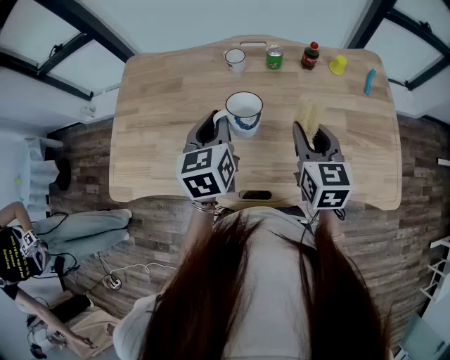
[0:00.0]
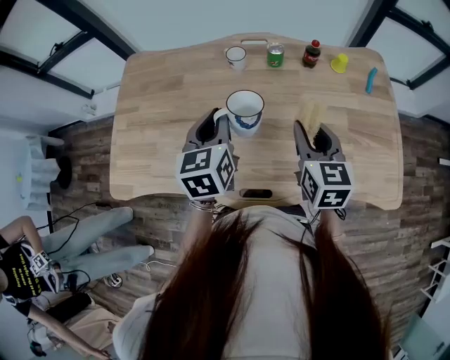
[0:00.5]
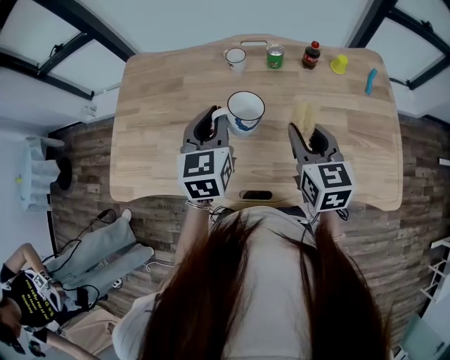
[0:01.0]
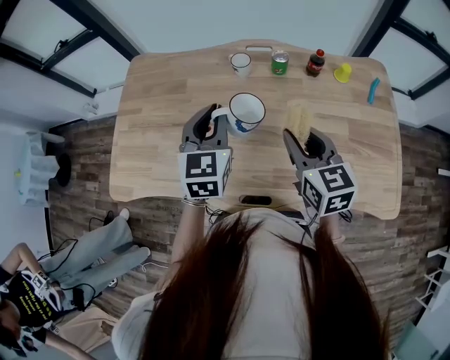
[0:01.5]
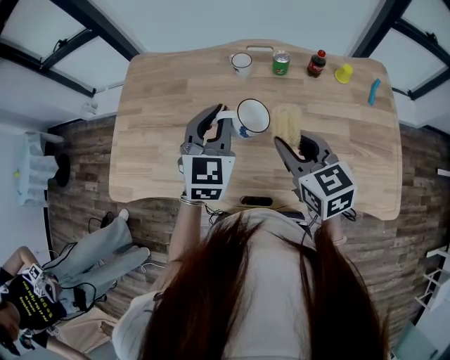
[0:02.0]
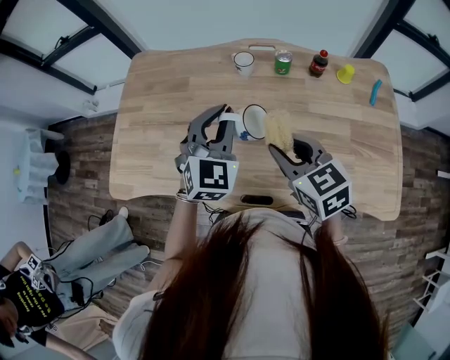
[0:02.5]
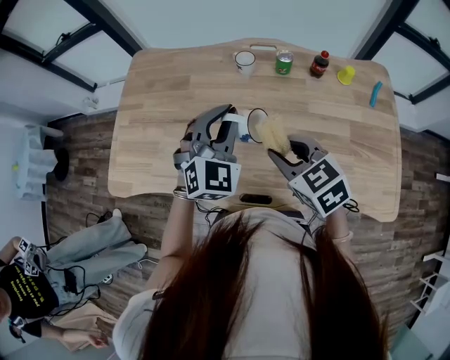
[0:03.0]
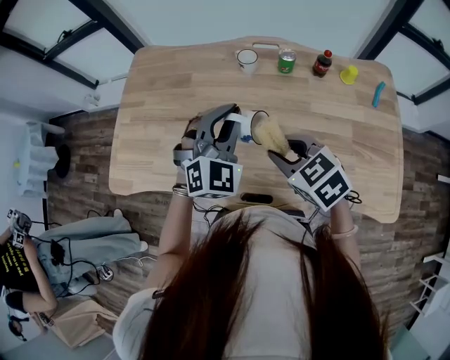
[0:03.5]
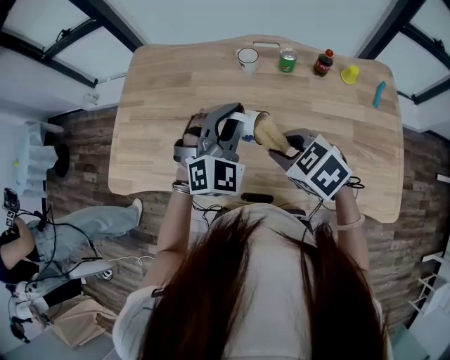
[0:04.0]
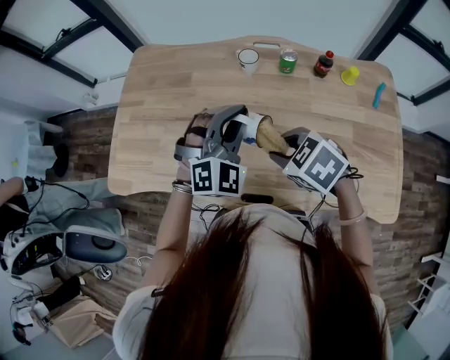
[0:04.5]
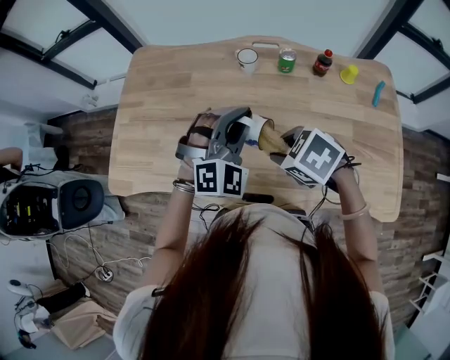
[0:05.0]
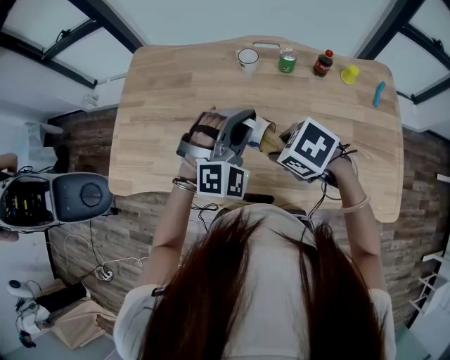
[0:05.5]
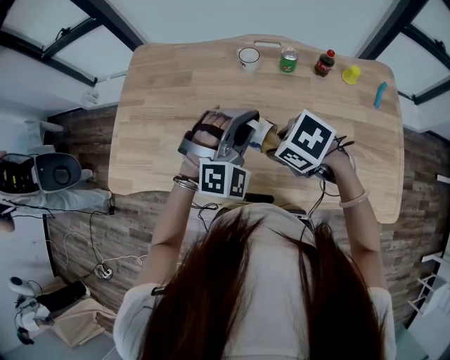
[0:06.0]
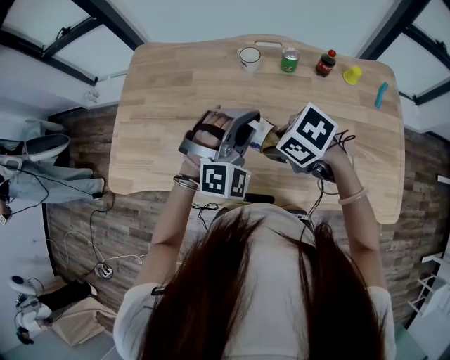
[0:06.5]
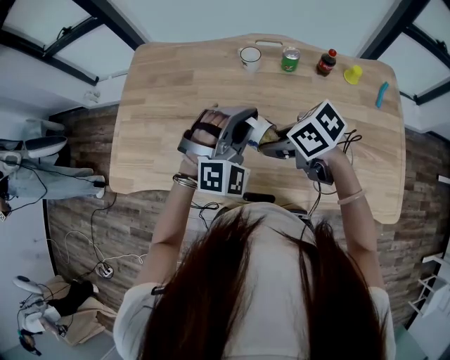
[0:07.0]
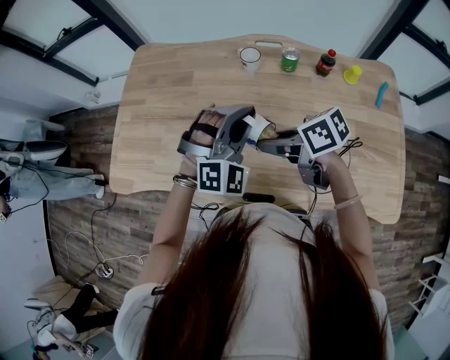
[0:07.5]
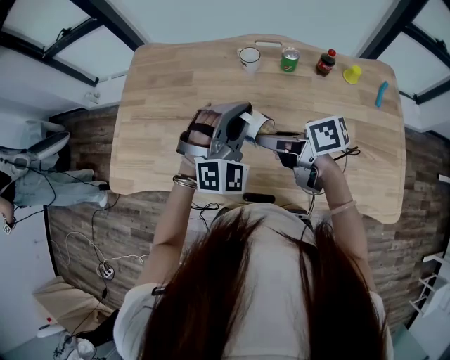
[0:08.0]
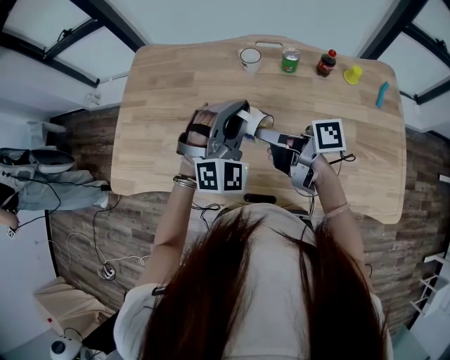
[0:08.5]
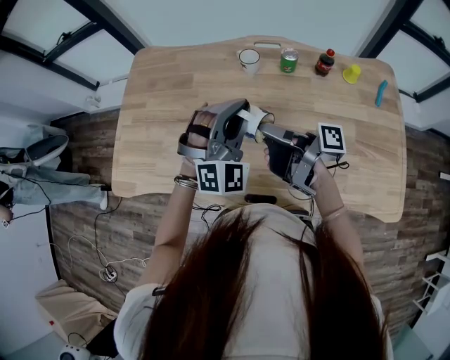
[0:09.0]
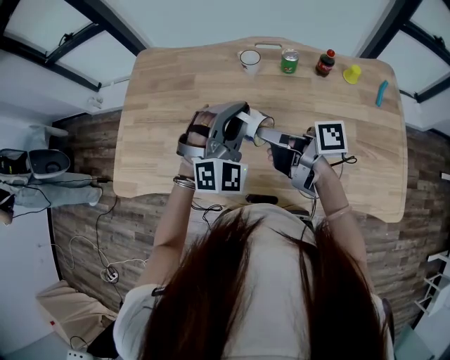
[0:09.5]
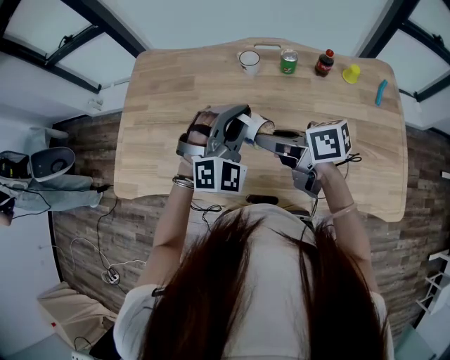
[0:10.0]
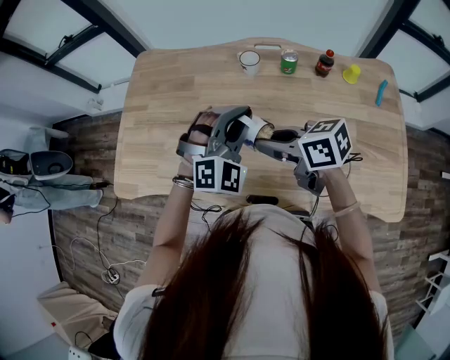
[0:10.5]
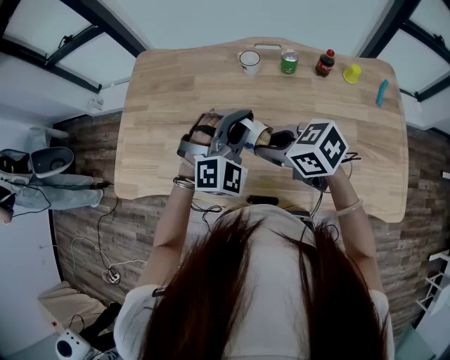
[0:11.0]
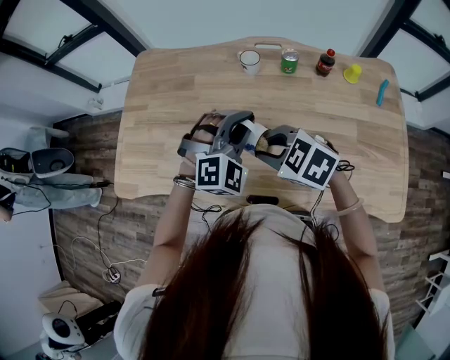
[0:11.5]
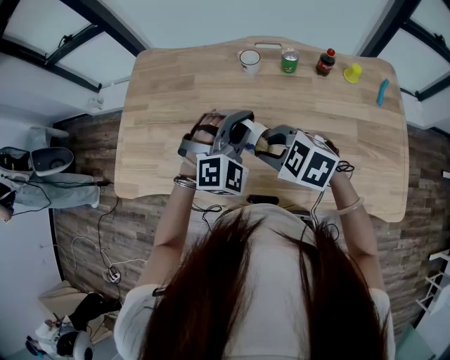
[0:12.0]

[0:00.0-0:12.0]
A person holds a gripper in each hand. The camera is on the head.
0:00.0 to 0:02.0: The right gripper is displaced to the left by approximately 5 cm, and changes its angle by approximately 20 degrees, while the left gripper swivels approximately 30 degrees.
0:02.0 to 0:04.0: The left gripper rotates approximately 30 degrees. The right gripper changes place by roughly 5 cm, and swivels about 40 degrees.
0:04.0 to 0:06.0: The right gripper changes its angle by approximately 20 degrees.
0:06.0 to 0:08.0: The right gripper tilts its fingers about 50 degrees upward.
0:10.0 to 0:12.0: The right gripper rotates around the line of its fingers by about 60 degrees, counterclockwise from behind.

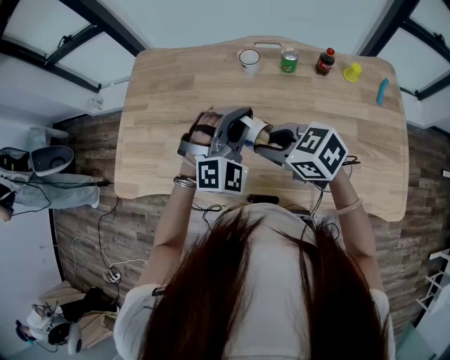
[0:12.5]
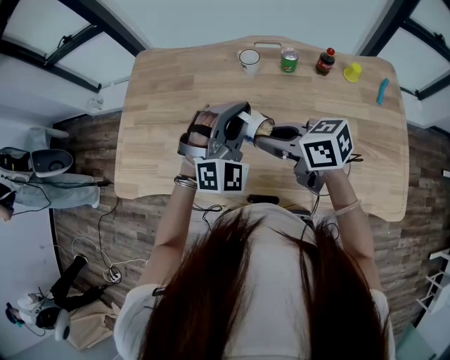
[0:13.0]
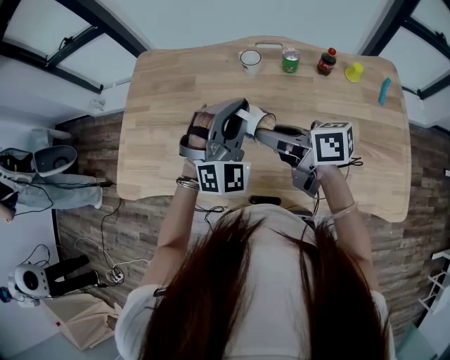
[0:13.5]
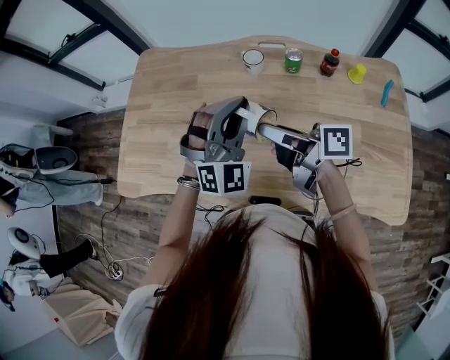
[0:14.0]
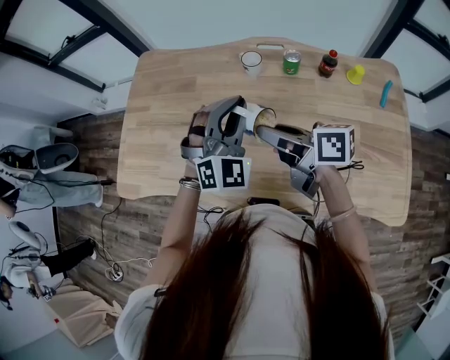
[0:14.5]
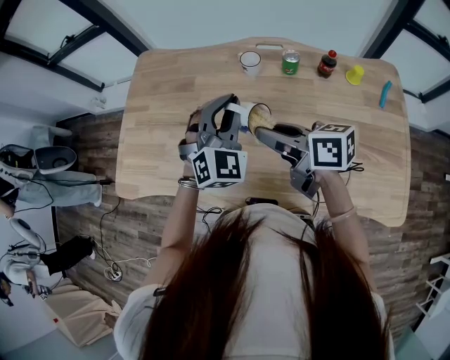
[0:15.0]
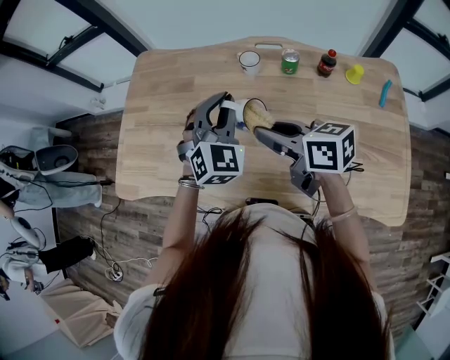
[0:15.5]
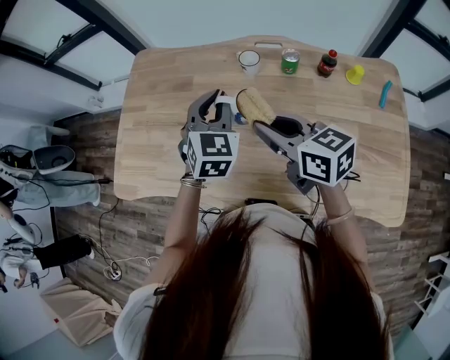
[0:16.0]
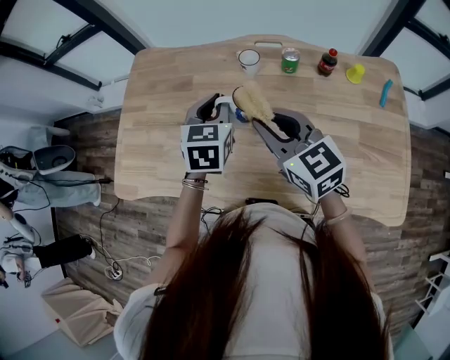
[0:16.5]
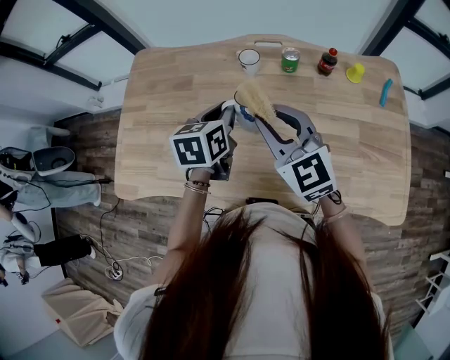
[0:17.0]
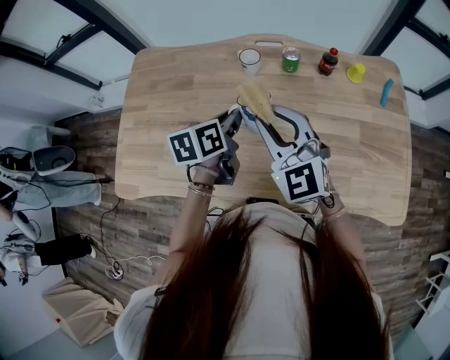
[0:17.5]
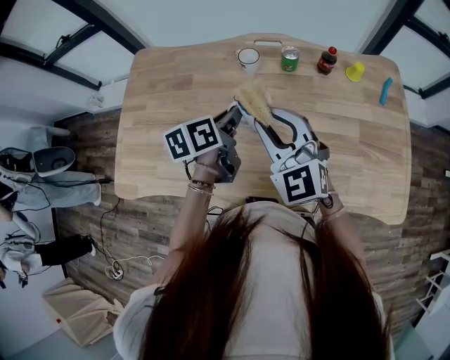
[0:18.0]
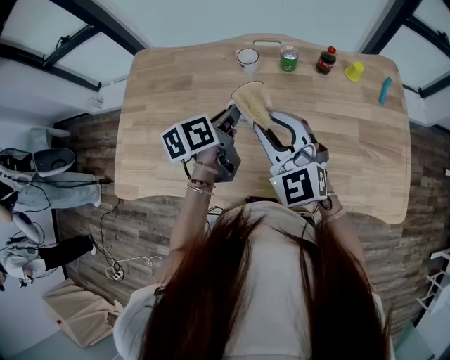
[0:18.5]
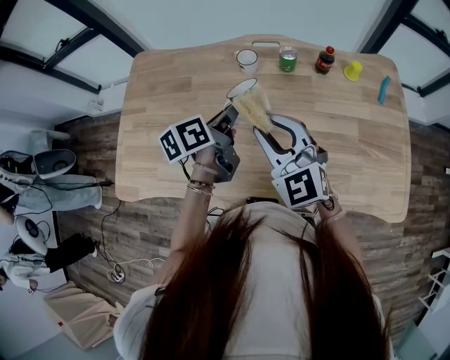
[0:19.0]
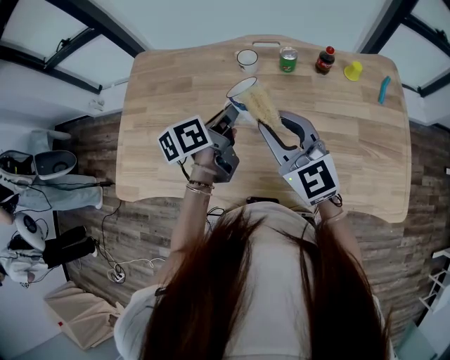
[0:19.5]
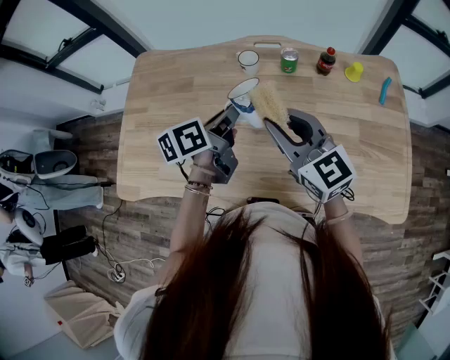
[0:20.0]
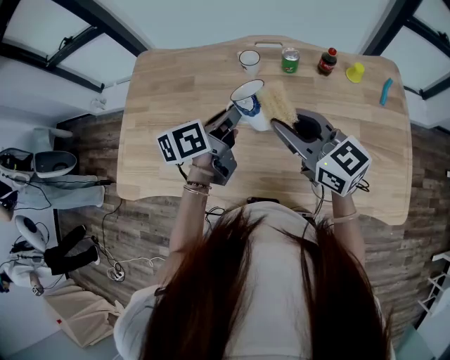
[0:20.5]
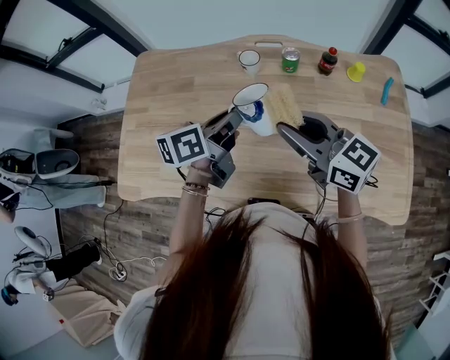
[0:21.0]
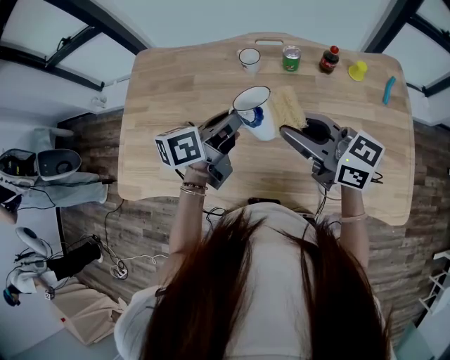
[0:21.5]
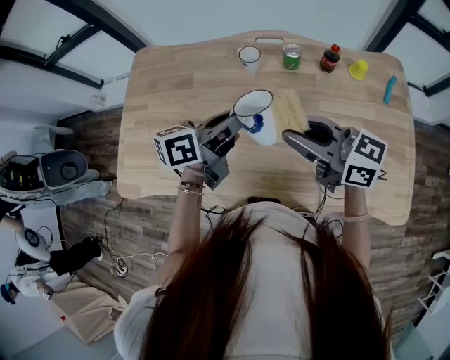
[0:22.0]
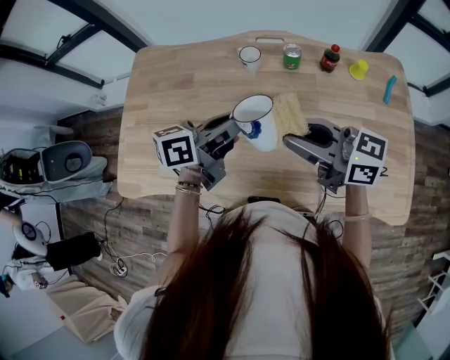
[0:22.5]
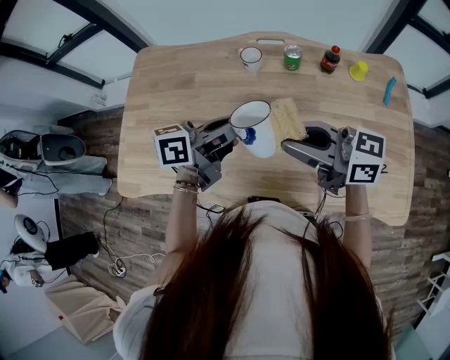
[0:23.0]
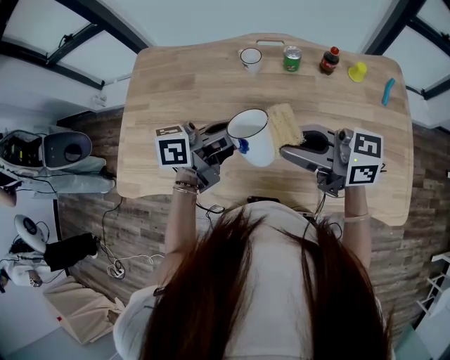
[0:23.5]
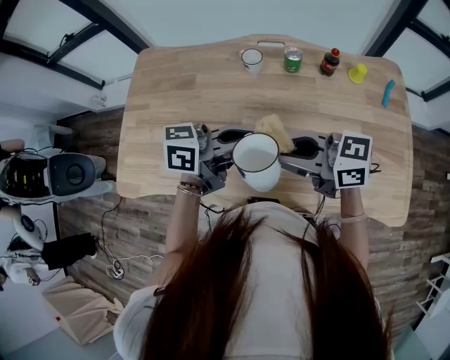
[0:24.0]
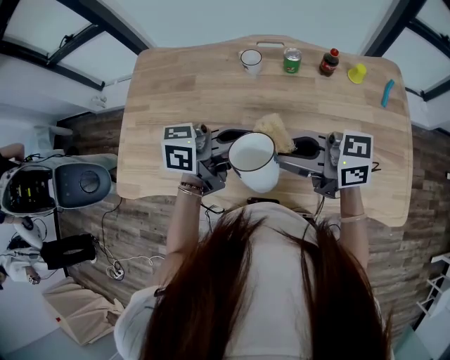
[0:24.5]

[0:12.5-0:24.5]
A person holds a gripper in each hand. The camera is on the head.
0:12.5 to 0:14.5: The right gripper shifts by approximately 5 cm, and rotates around the line of its fingers by roughly 40 degrees, clockwise from behind.
0:14.5 to 0:16.5: The left gripper goes approximately 5 cm forward, and rolls counterclockwise, seen from behind, by roughly 50 degrees. The right gripper rotates around the line of its fingers by some 50 degrees, counterclockwise from behind.
0:16.5 to 0:18.5: The right gripper rotates about 30 degrees. Meanwhile the left gripper twists about 50 degrees counterclockwise, seen from behind.
0:18.5 to 0:20.5: The right gripper rotates roughly 40 degrees.
0:20.5 to 0:22.5: The left gripper rotates about 20 degrees; the right gripper changes its angle by approximately 30 degrees.
0:22.5 to 0:24.5: The left gripper changes place by about 10 cm, and changes its angle by approximately 20 degrees. Meanwhile the right gripper ends up some 5 cm from where it was.

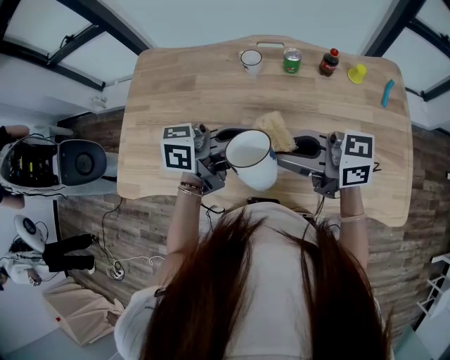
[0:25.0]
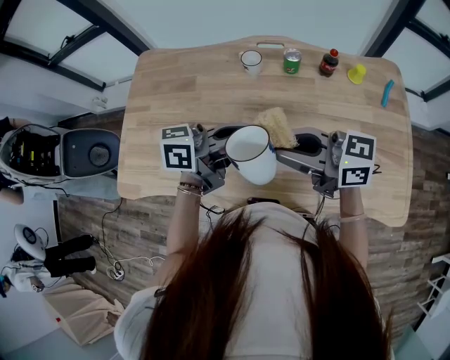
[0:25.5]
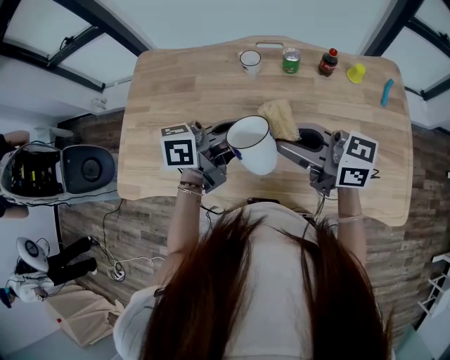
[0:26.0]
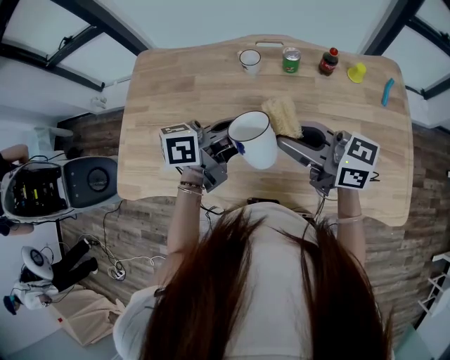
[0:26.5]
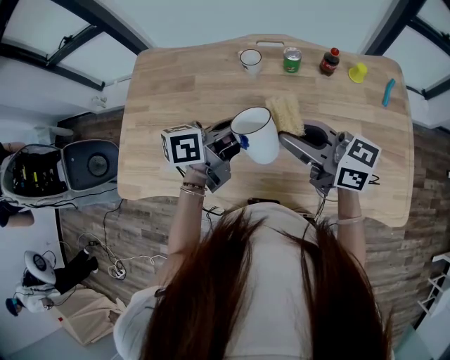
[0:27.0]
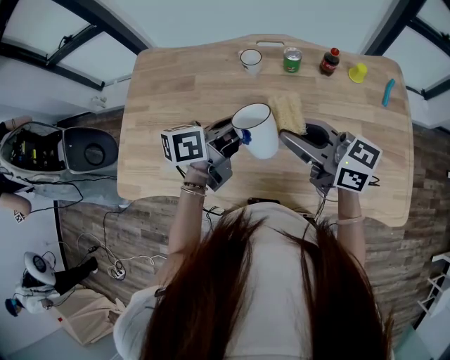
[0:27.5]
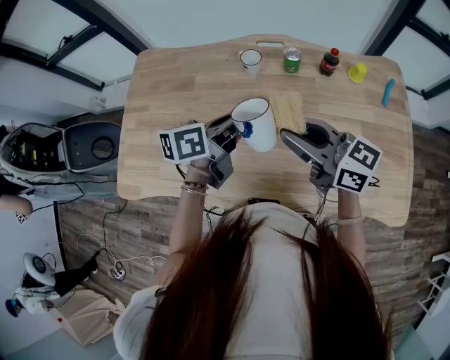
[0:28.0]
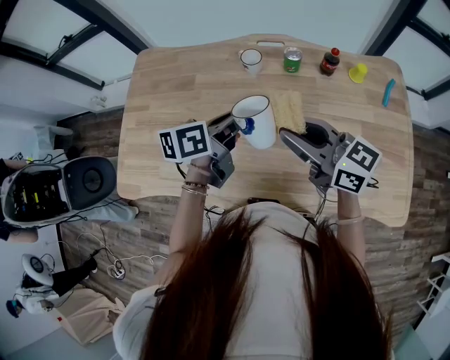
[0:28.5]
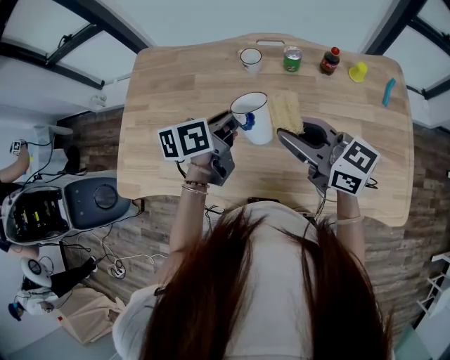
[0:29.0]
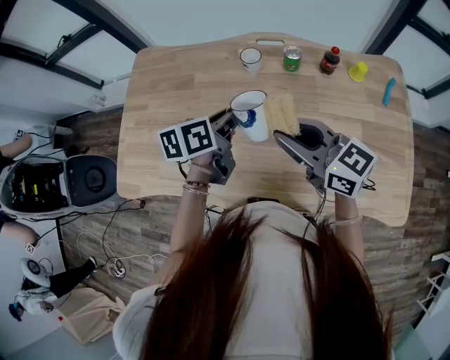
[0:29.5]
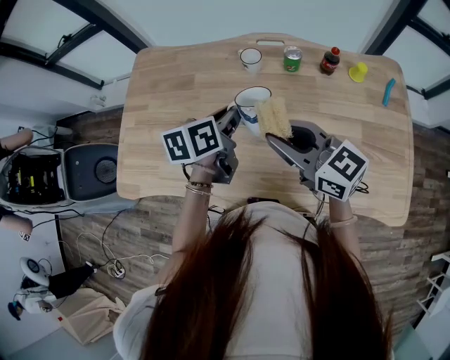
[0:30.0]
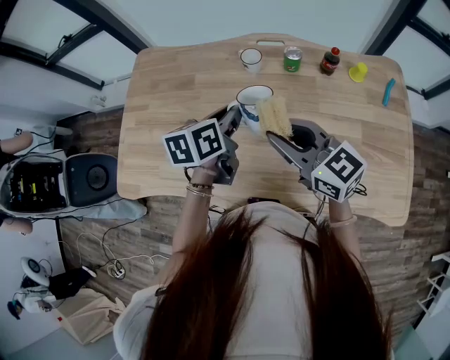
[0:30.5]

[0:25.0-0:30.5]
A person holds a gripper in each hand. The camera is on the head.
0:25.0 to 0:27.0: The left gripper ends up approximately 5 cm from where it was, and turns by approximately 20 degrees.
0:27.0 to 0:28.5: The grippers move only a little.
0:28.5 to 0:30.5: The grippers make only small movements.
